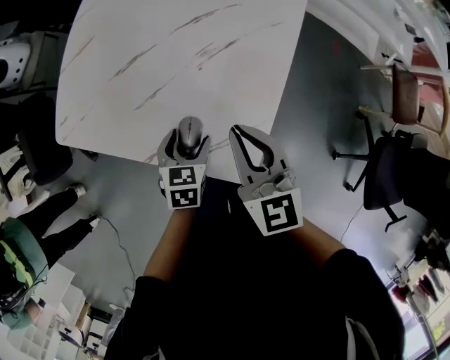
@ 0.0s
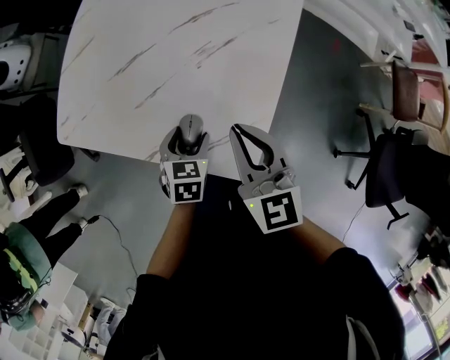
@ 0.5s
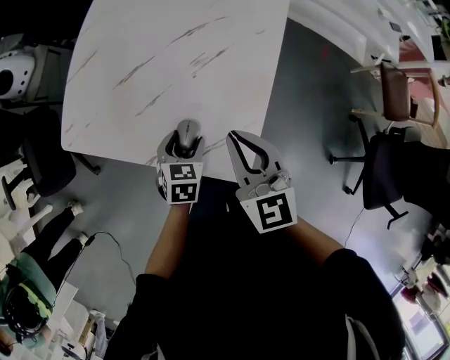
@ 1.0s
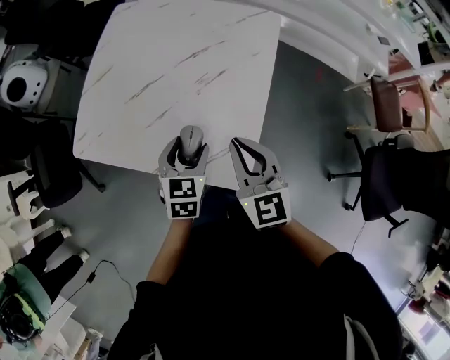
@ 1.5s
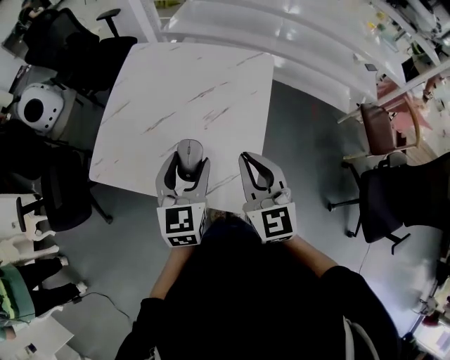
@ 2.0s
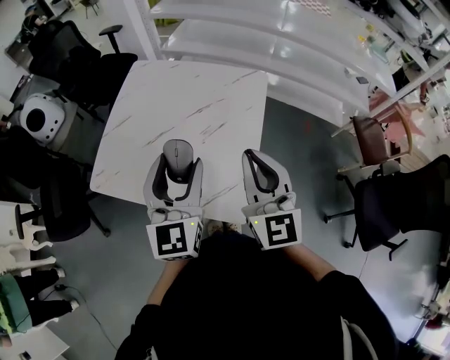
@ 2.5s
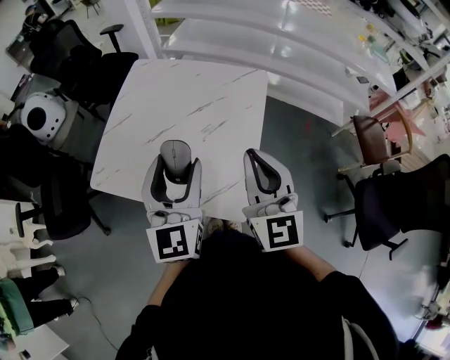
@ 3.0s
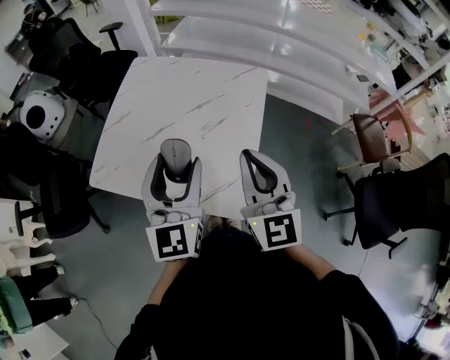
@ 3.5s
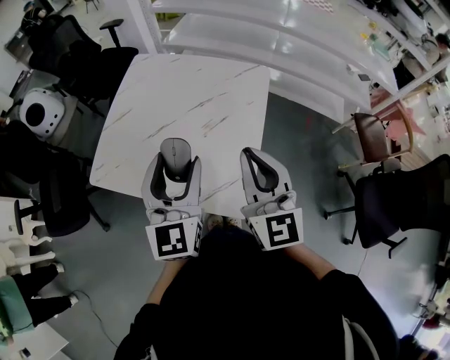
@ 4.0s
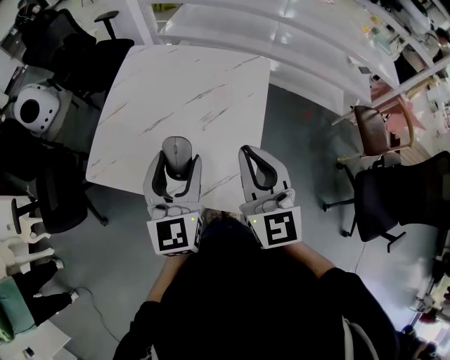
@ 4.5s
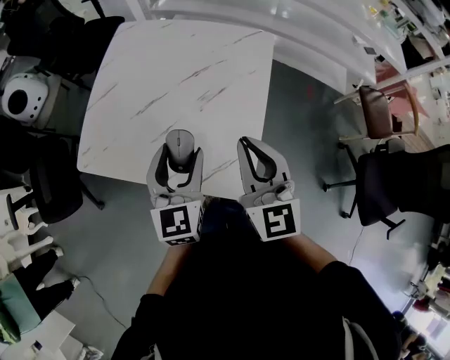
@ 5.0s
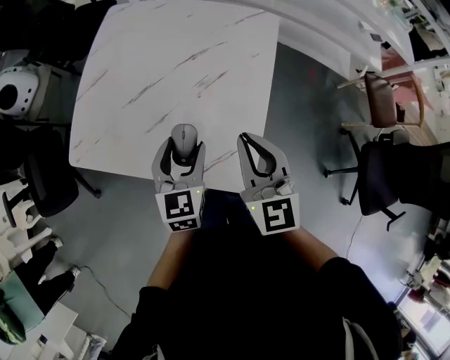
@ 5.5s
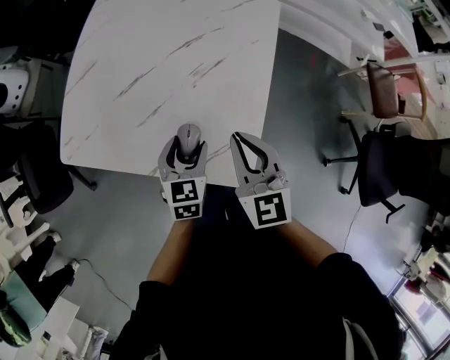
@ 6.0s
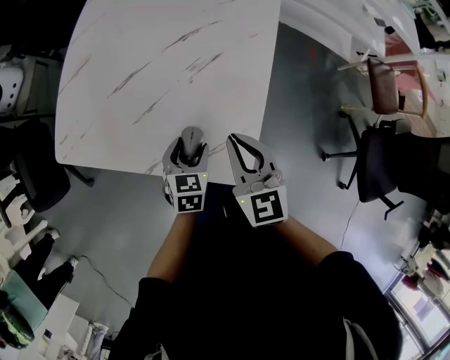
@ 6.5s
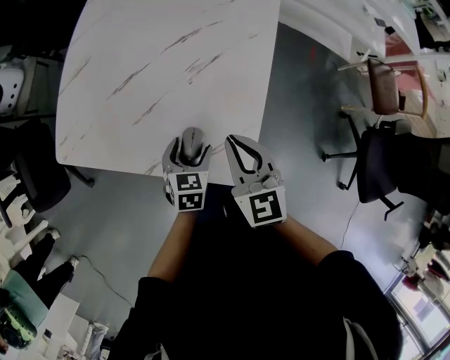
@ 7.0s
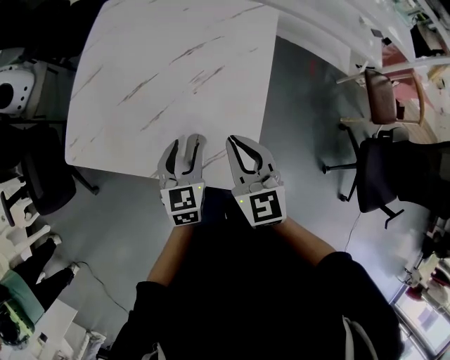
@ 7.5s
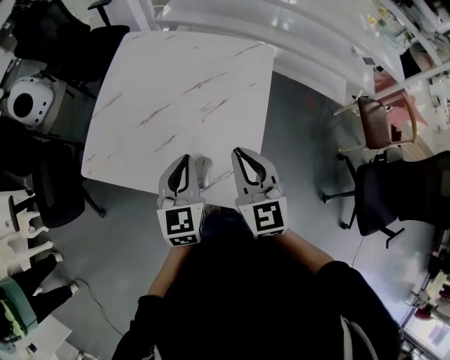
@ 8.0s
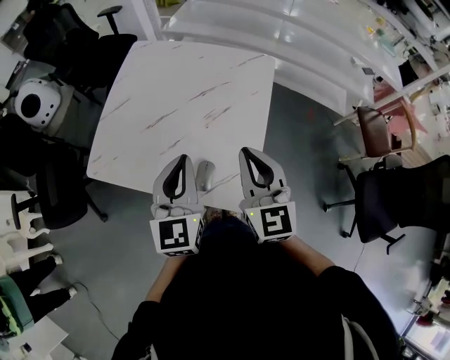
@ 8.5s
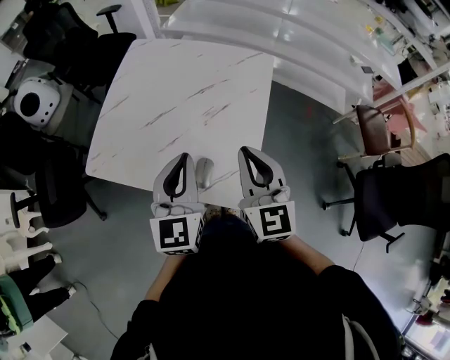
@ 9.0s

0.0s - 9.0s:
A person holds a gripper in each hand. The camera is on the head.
0.0s - 2.0s: The left gripper shifts some 25 cm upward, and points its fingers approximately 40 degrees further upward; the right gripper heads upward, covering some 10 cm.
2.0s - 4.5s: The grippers both shift upward by approximately 5 cm.
4.5s - 7.0s: The right gripper shifts approximately 20 cm downward, and turns by roughly 20 degrees. The left gripper goes some 30 cm downward, and angles its fingers downward, by approximately 40 degrees.
7.0s - 9.0s: The left gripper travels upward by roughly 30 cm, tilts its fingers about 40 degrees upward, and closes up, while the right gripper moves upward, roughly 15 cm.

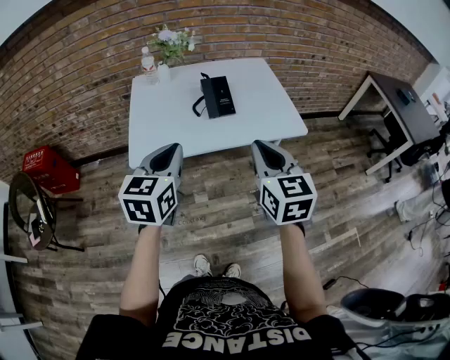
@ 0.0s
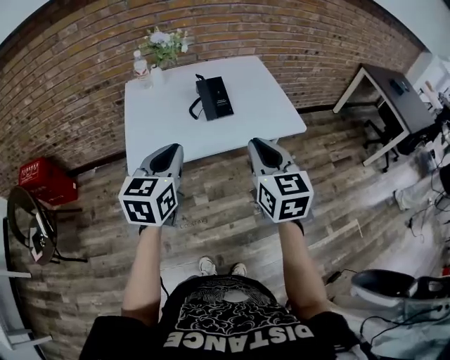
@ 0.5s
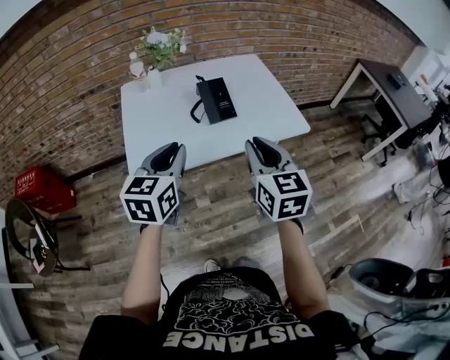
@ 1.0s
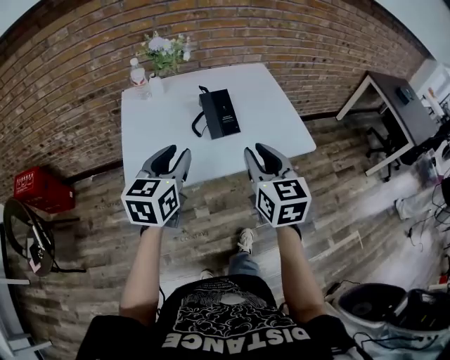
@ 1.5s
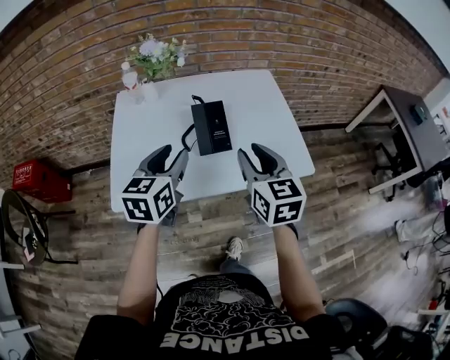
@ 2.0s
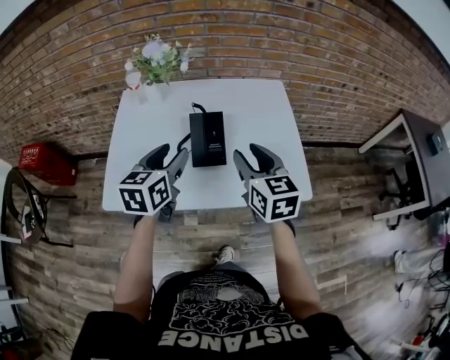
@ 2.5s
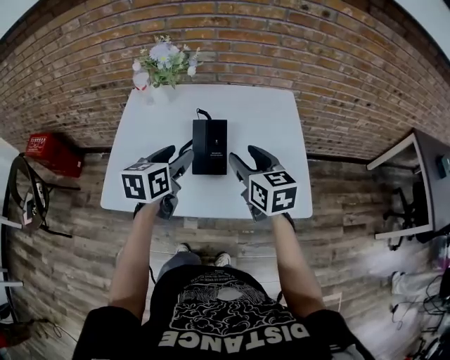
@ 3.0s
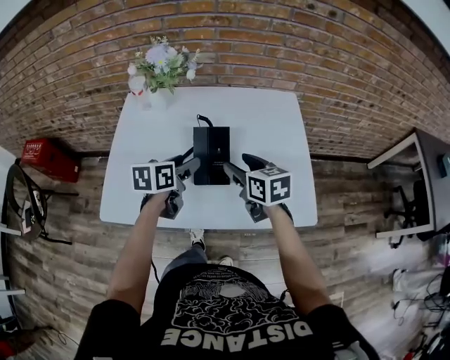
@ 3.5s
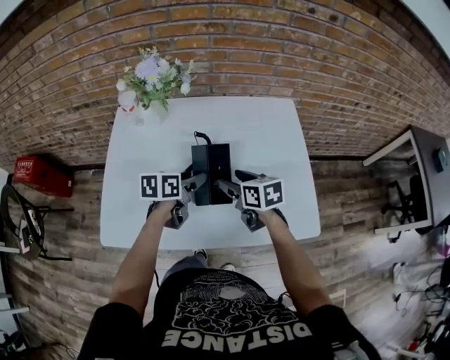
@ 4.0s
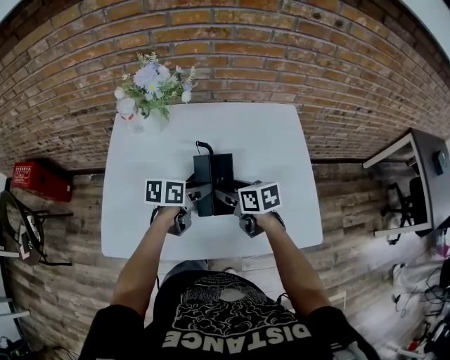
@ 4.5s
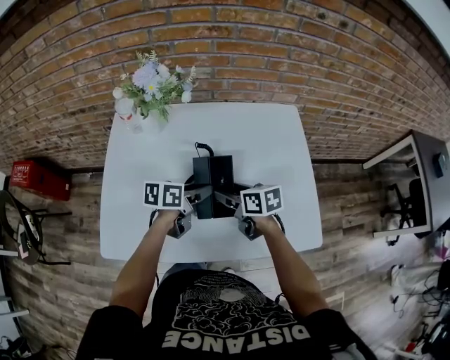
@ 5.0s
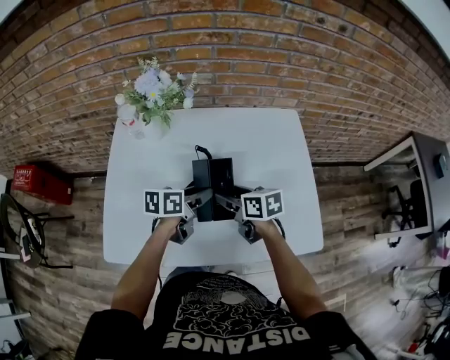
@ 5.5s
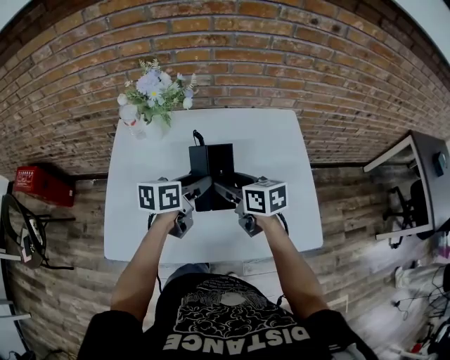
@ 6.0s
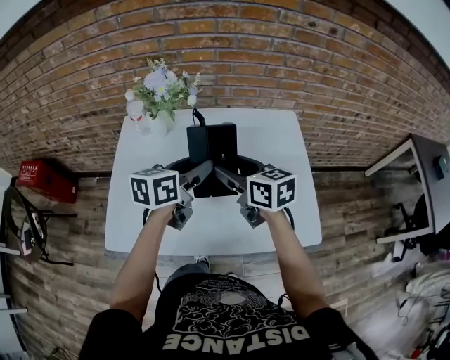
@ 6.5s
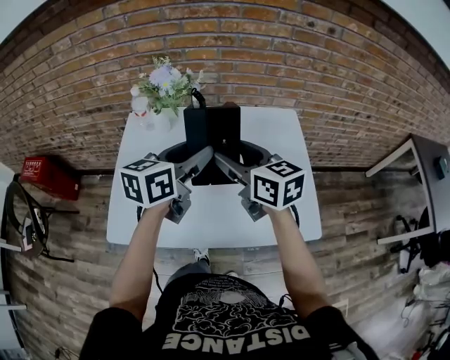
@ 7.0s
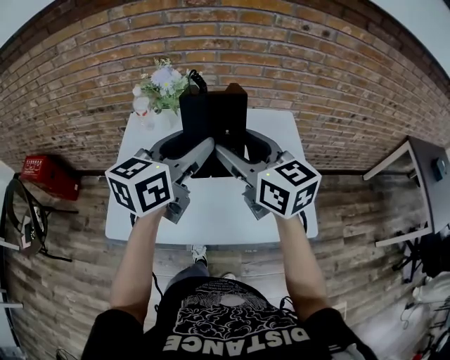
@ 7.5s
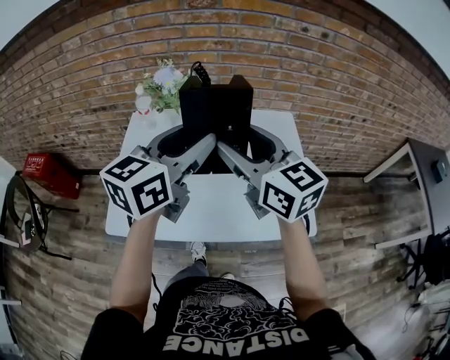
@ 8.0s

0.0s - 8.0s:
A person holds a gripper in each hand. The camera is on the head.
0.0s - 2.0s: The two grippers go roughly 20 cm forward. The right gripper opens, while the left gripper opens up.
2.0s - 4.0s: Both grippers travel together forward and downward, approximately 25 cm. The left gripper turns by roughly 30 degrees, and opens its fingers, while the right gripper changes its angle by about 40 degrees, and opens.
4.0s - 6.0s: The right gripper ends up approximately 5 cm from where it was. The left gripper moves upward, about 5 cm.
6.0s - 8.0s: Both grippers travel together upward, about 25 cm. The left gripper rotates approximately 40 degrees; the right gripper rotates roughly 40 degrees.

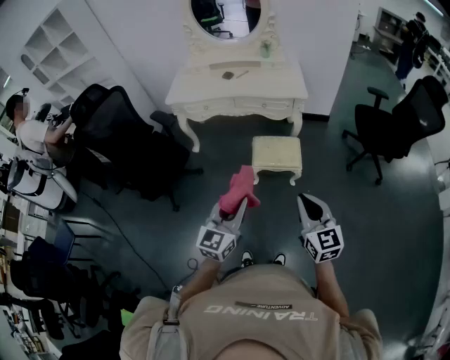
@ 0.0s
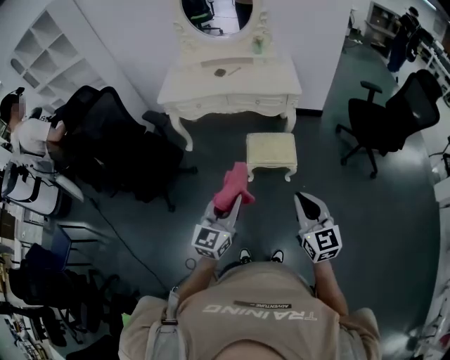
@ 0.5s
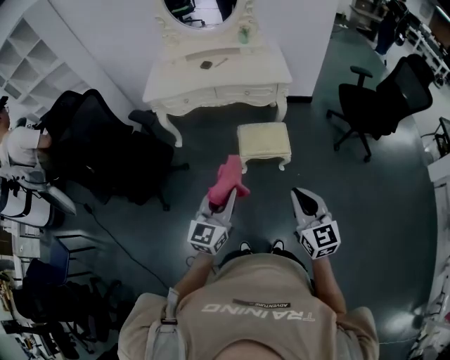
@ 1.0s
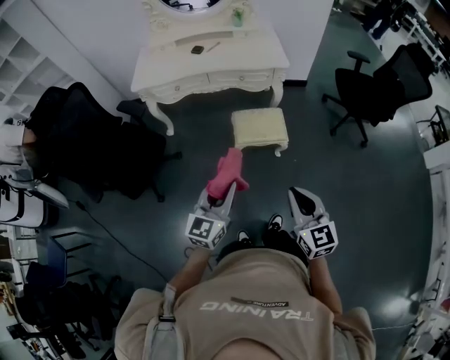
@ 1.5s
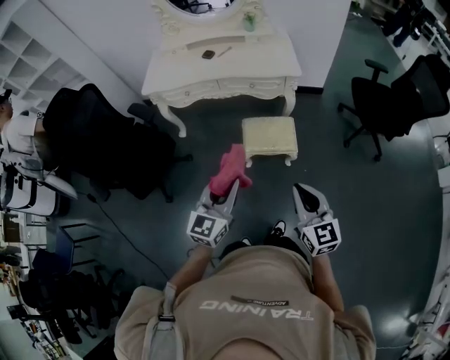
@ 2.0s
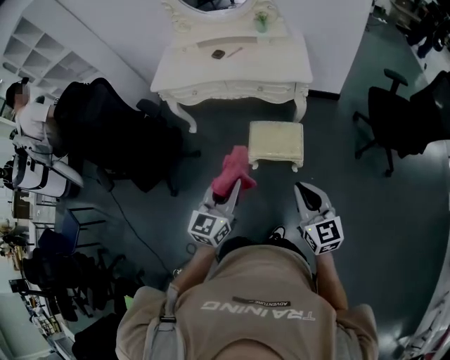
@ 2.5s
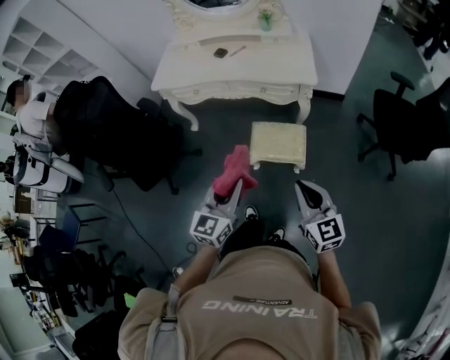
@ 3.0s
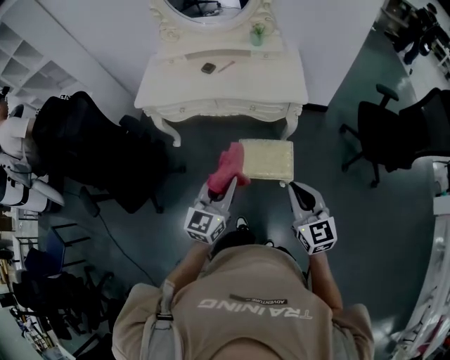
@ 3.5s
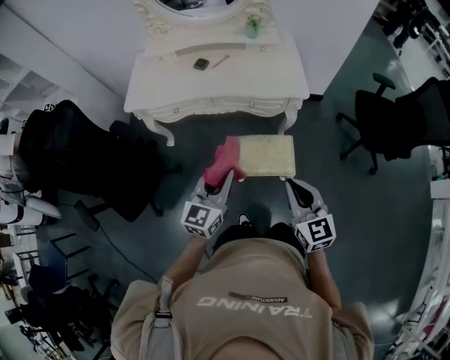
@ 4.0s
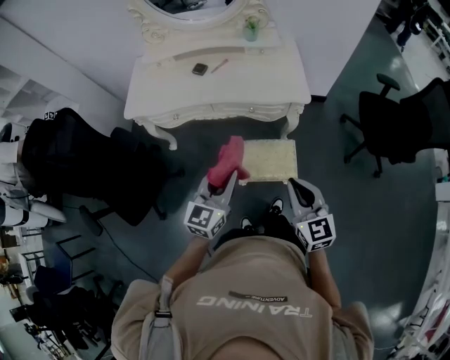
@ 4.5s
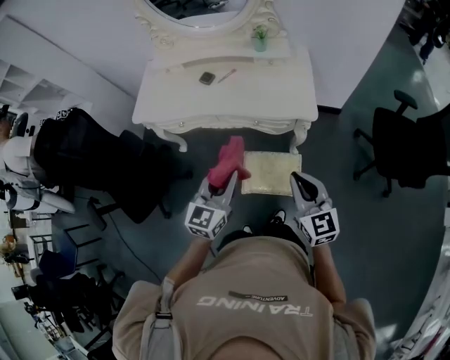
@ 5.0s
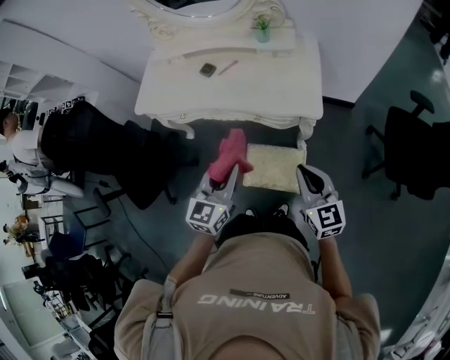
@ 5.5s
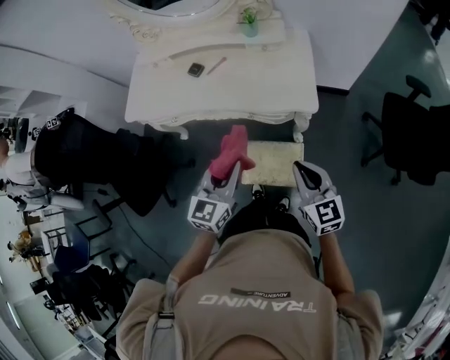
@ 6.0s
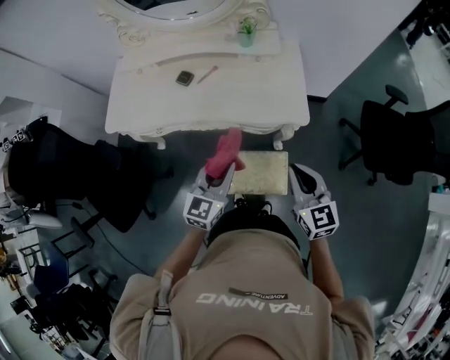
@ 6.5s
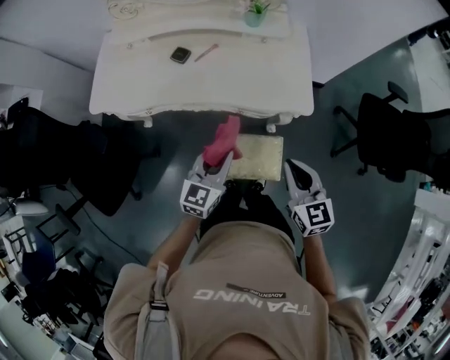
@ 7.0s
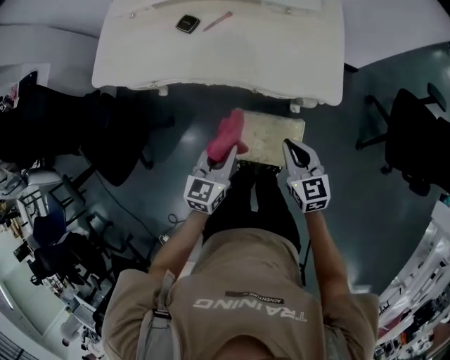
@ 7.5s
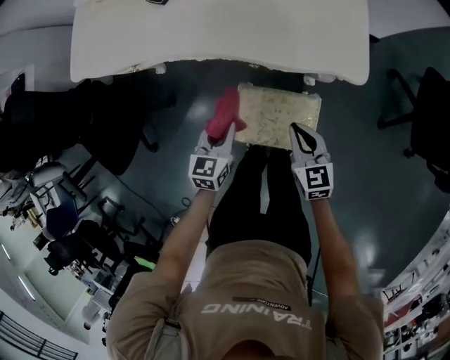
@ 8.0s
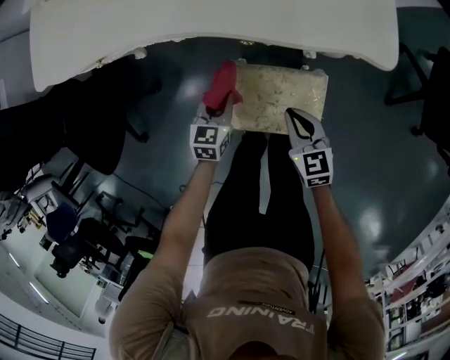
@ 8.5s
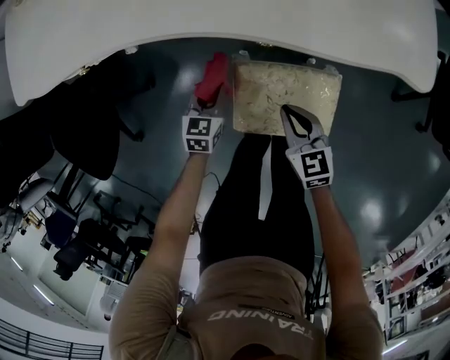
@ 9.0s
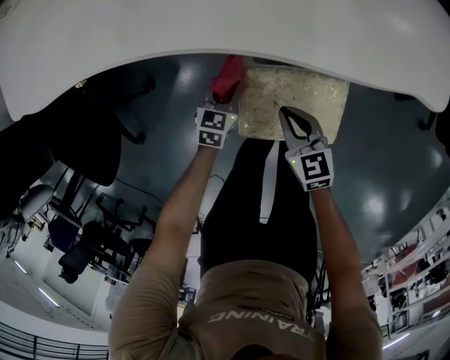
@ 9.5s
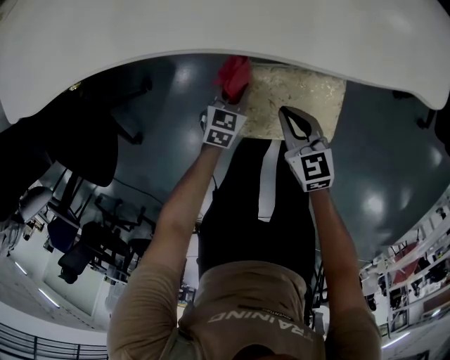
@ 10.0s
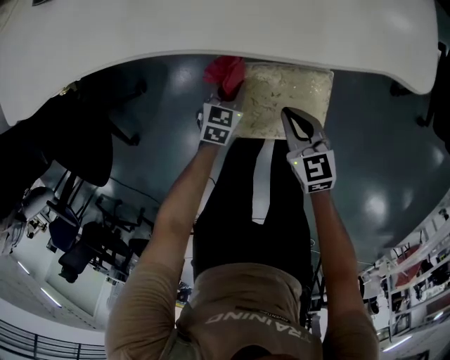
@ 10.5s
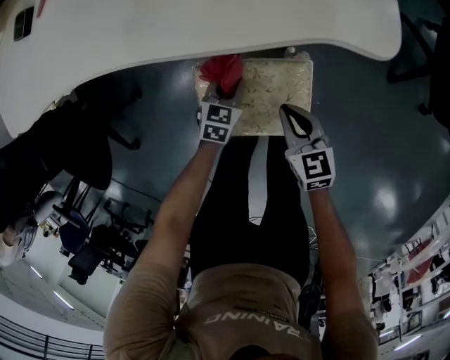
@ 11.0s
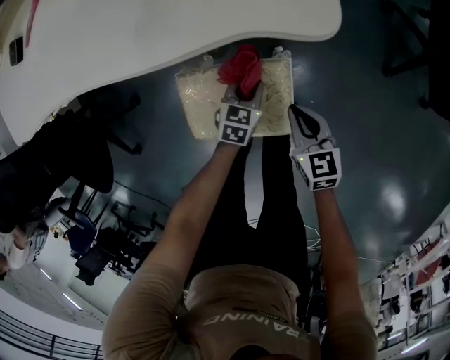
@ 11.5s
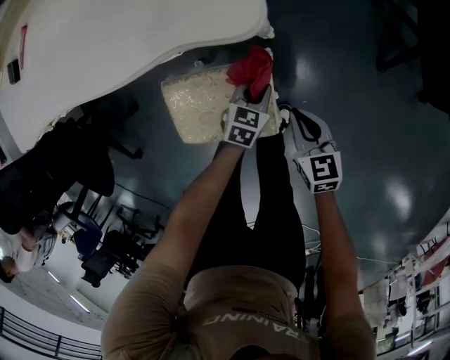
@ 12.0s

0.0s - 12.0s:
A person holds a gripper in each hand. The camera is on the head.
0.0s - 2.0s: The two grippers go approximately 10 cm forward.
2.0s - 4.0s: The two grippers go some 25 cm forward.
4.0s - 6.0s: Both grippers travel together forward and to the right, roughly 25 cm.
6.0s - 8.0s: Both grippers move downward, about 30 cm. The left gripper swivels some 20 degrees.
8.0s - 10.0s: The right gripper travels downward and to the left by approximately 20 cm. Meanwhile the left gripper is displaced downward by about 30 cm, and rotates roughly 20 degrees.
10.0s - 12.0s: The grippers both shift to the right by about 30 cm.
